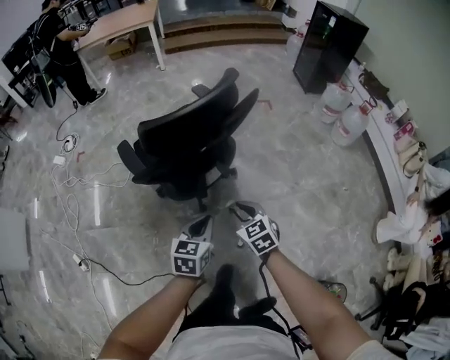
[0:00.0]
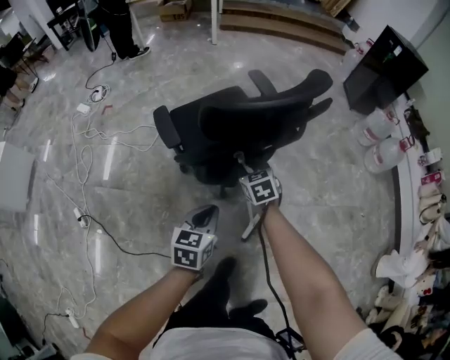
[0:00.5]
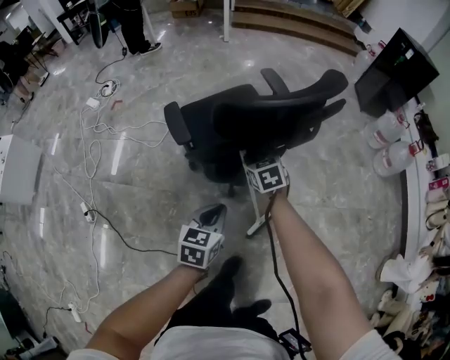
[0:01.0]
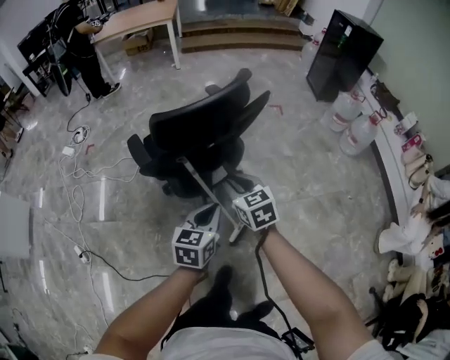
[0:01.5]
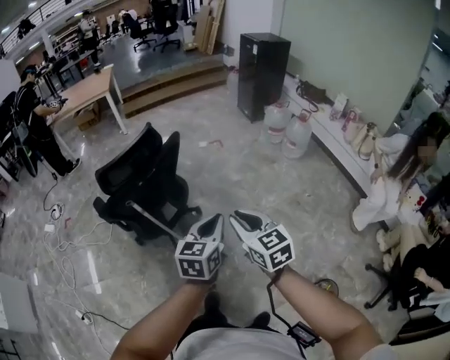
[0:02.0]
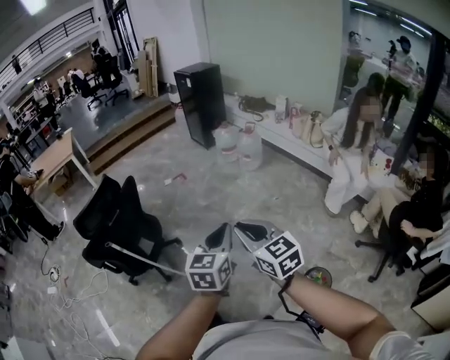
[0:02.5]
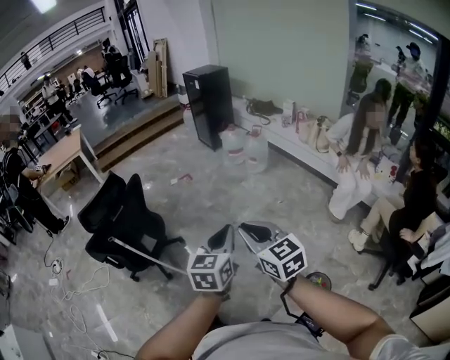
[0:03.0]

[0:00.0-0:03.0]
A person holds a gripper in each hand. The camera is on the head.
0:00.0 to 0:01.5: The right gripper shifts about 10 cm upward and to the left, and moves some 20 cm forward and comes back. Meanwhile the left gripper travels to the left and back again, roughly 15 cm each way.
0:01.5 to 0:03.0: Both grippers are carried about 60 cm. The left gripper turns by some 30 degrees. The right gripper swivels approximately 30 degrees.

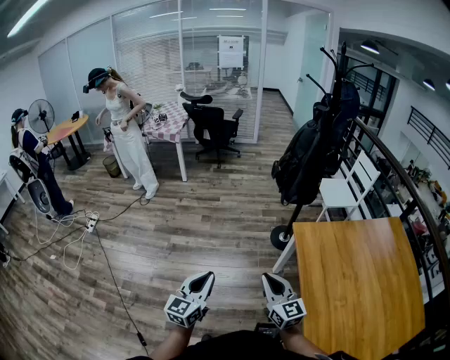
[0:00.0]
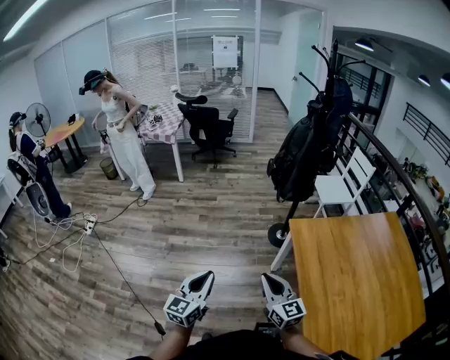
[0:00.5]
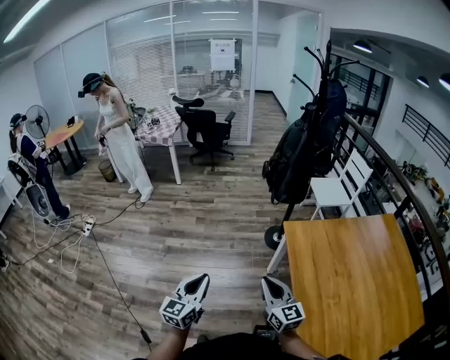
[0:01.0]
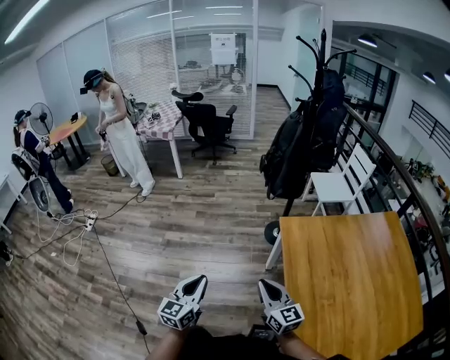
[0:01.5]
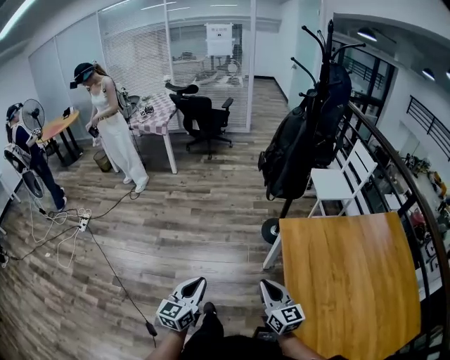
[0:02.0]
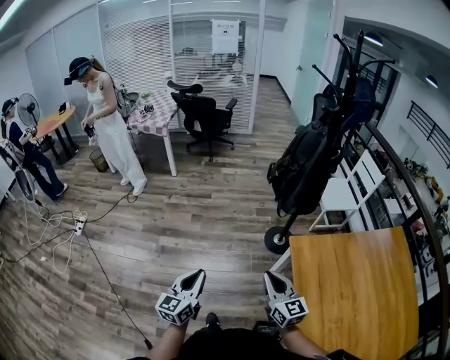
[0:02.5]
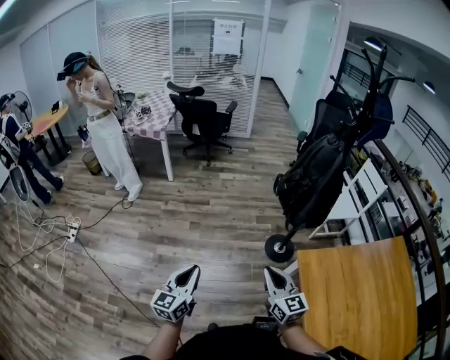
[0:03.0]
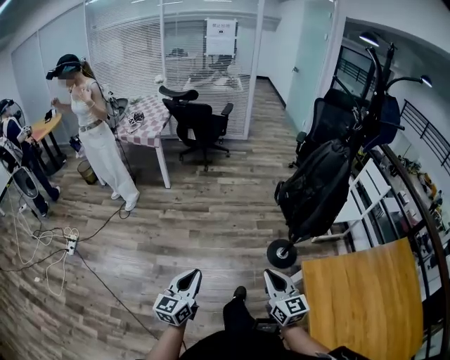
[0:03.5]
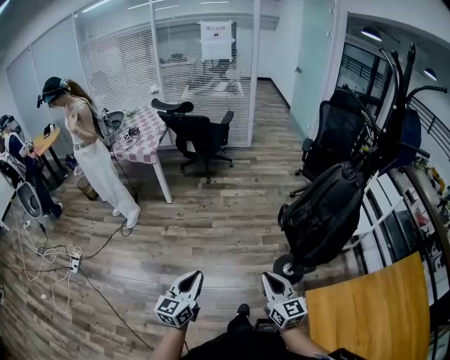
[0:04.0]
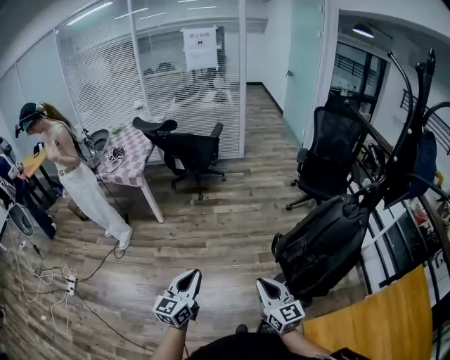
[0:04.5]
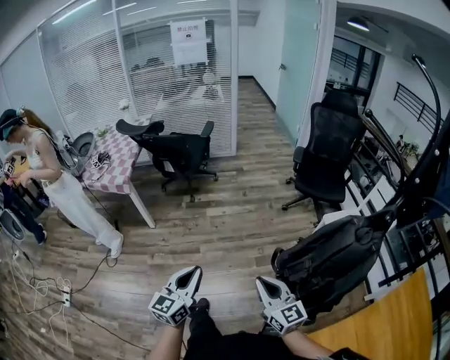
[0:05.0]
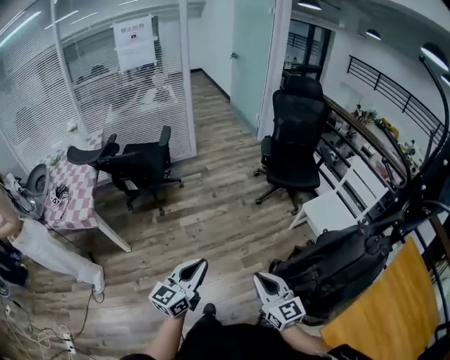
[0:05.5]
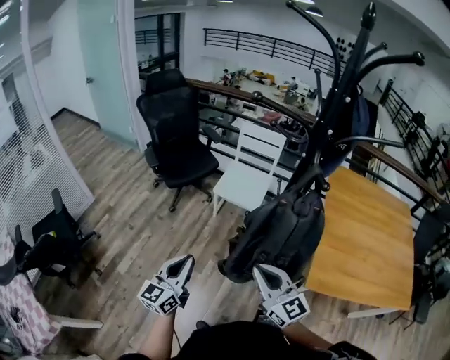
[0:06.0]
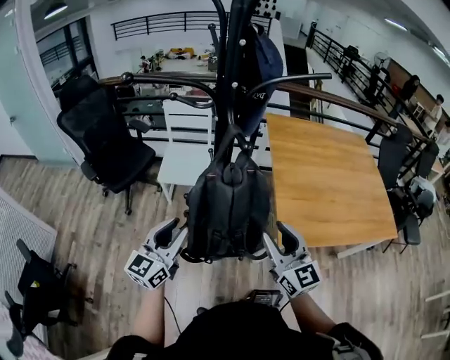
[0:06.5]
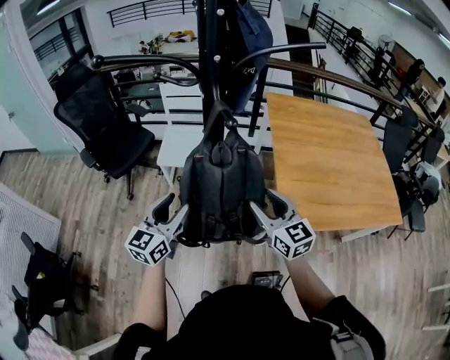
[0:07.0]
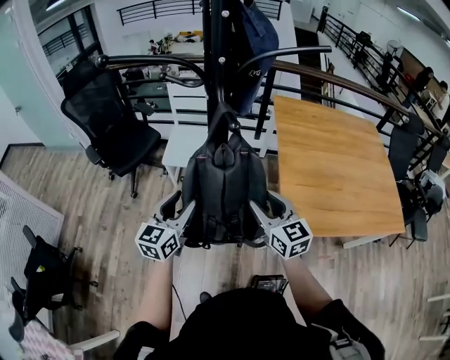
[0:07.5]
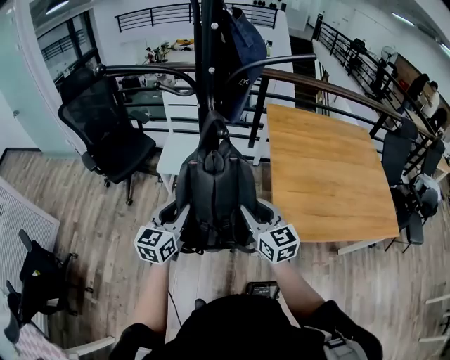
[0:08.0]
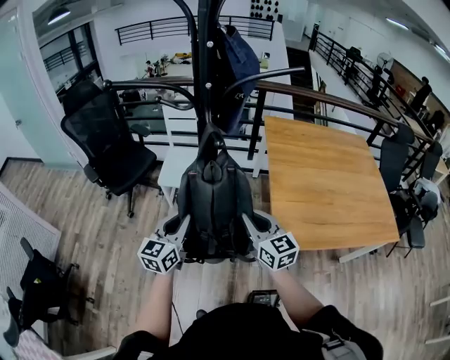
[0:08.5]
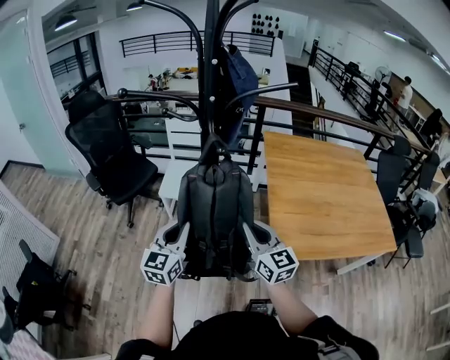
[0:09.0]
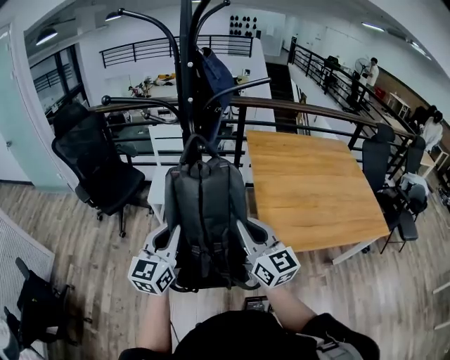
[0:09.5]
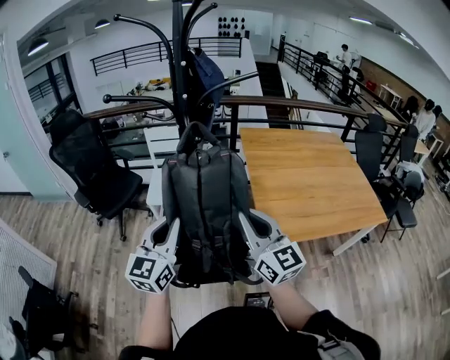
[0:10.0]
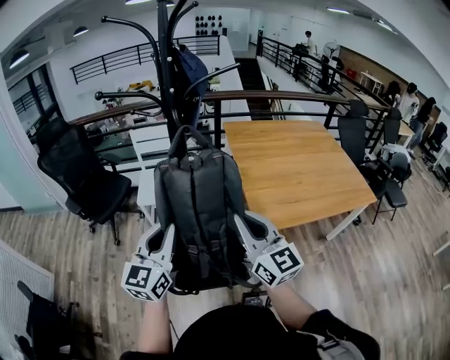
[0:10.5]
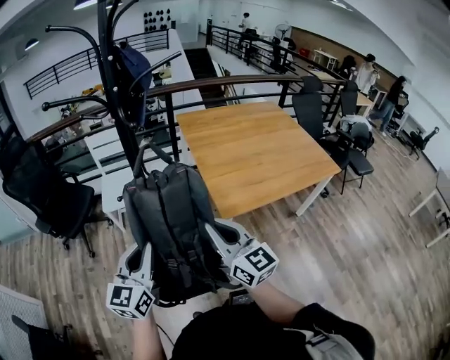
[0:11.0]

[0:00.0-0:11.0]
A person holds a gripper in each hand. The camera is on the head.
0:00.0 to 0:02.0: The right gripper moves to the right and downward, roughly 10 cm, while the left gripper travels downward and to the right by about 10 cm.
0:02.0 to 0:03.5: The left gripper travels forward and to the left by about 30 cm. Meanwhile the right gripper is displaced forward by approximately 25 cm.
0:03.5 to 0:05.5: The two grippers travel together, forward, about 50 cm. The left gripper turns by about 30 degrees.
0:05.5 to 0:07.5: The left gripper shifts by about 35 cm, changes its angle by some 50 degrees, and opens up; the right gripper ends up some 35 cm from where it was, rotates some 60 degrees, and opens up.
0:07.5 to 0:09.0: The left gripper closes its fingers, while the right gripper closes.
0:09.0 to 0:11.0: Both grippers move backward, about 15 cm.

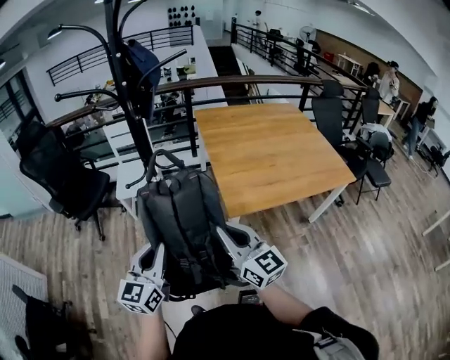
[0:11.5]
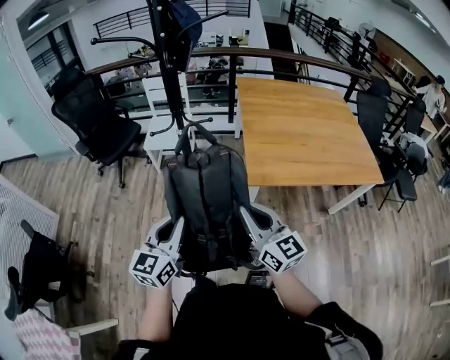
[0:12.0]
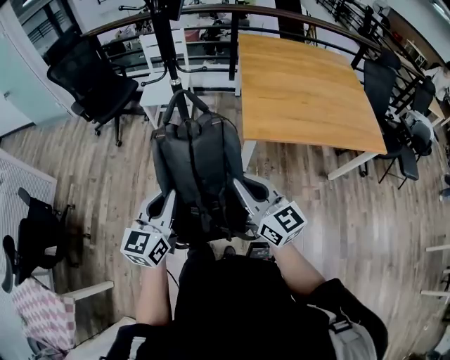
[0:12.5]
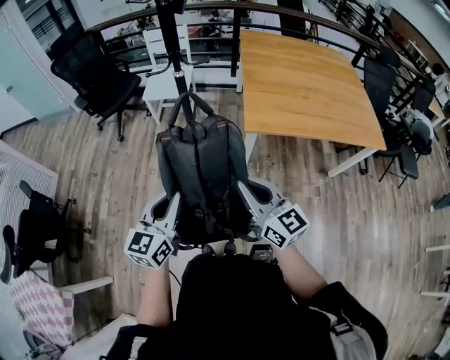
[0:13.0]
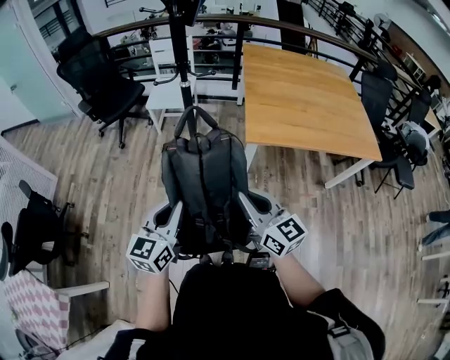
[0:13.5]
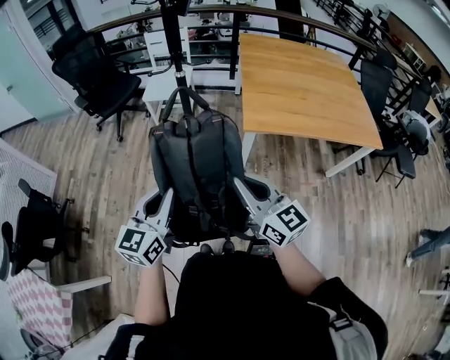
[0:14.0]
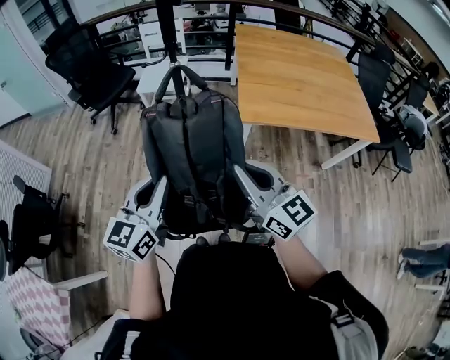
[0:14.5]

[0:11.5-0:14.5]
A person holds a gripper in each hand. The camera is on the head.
0:11.5 to 0:13.0: The right gripper travels backward and downward by some 15 cm, while the left gripper travels backward by roughly 15 cm.
0:13.0 to 0:14.5: The right gripper goes roughly 5 cm upward, while the left gripper changes place by about 5 cm.

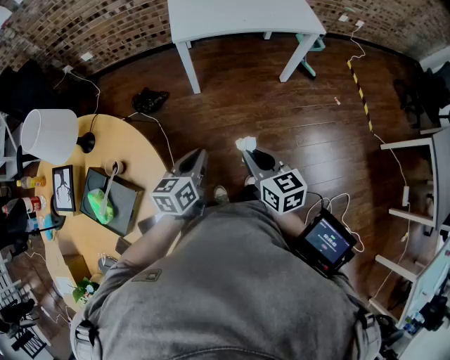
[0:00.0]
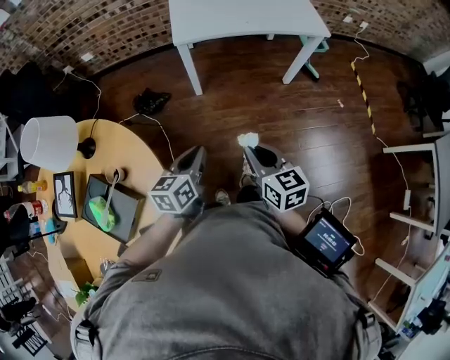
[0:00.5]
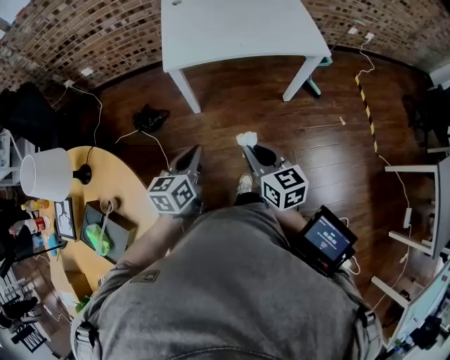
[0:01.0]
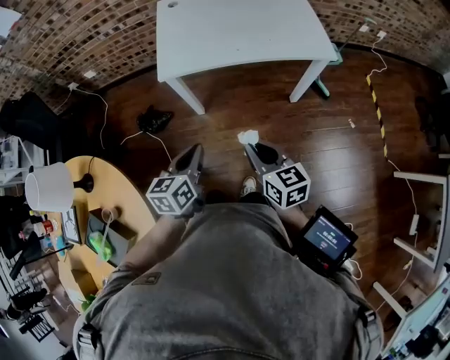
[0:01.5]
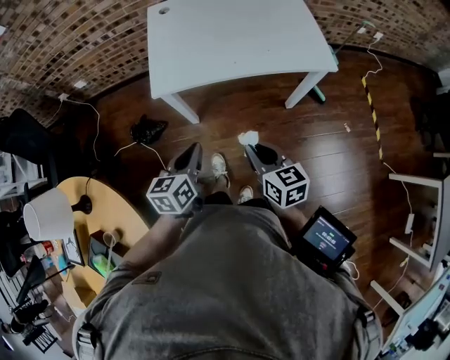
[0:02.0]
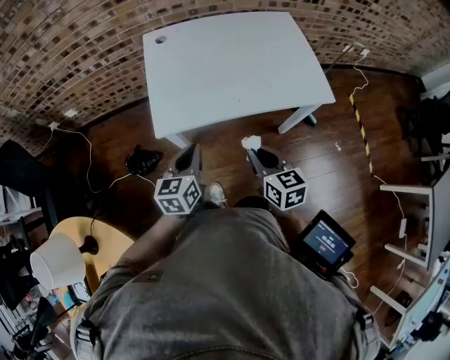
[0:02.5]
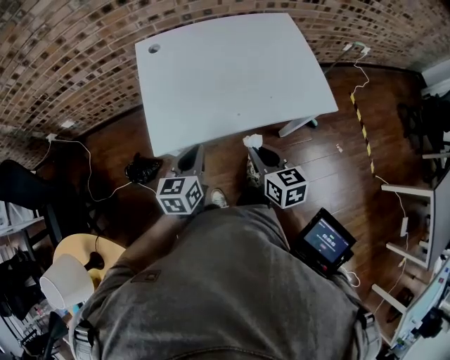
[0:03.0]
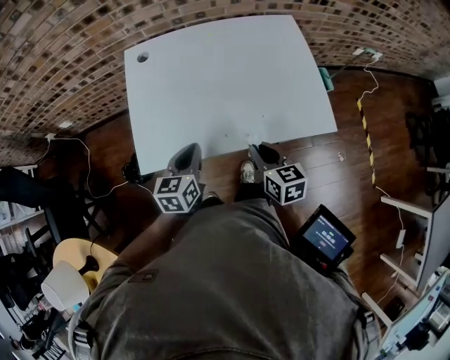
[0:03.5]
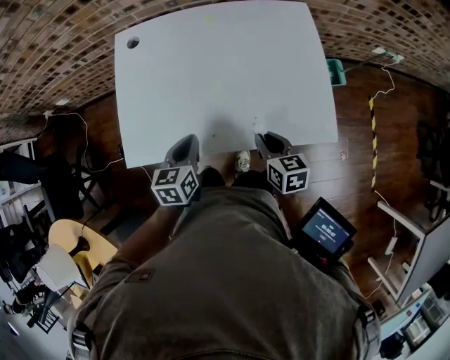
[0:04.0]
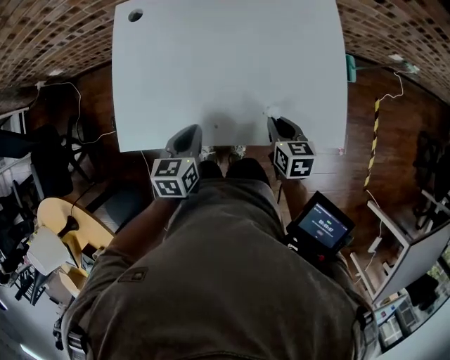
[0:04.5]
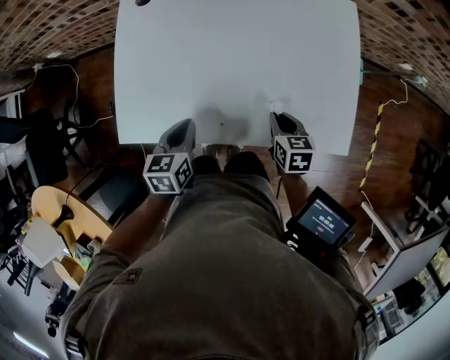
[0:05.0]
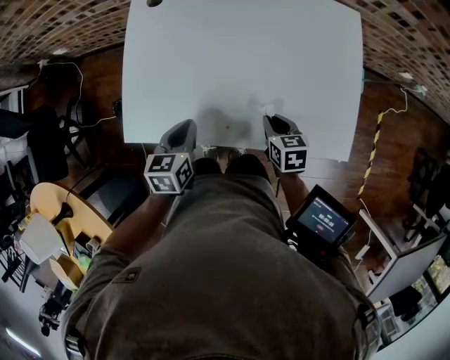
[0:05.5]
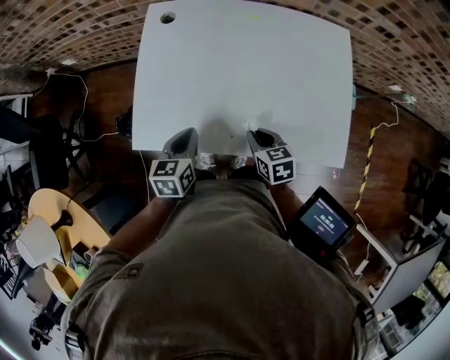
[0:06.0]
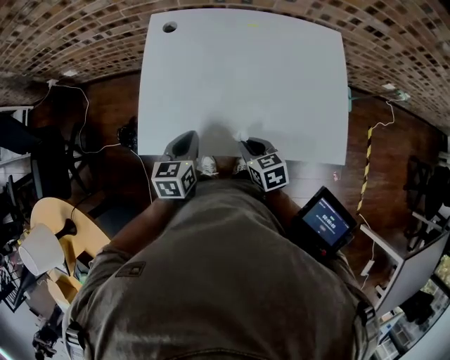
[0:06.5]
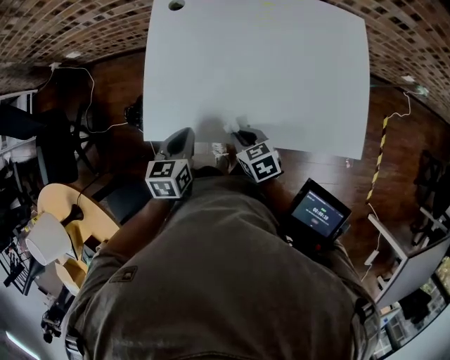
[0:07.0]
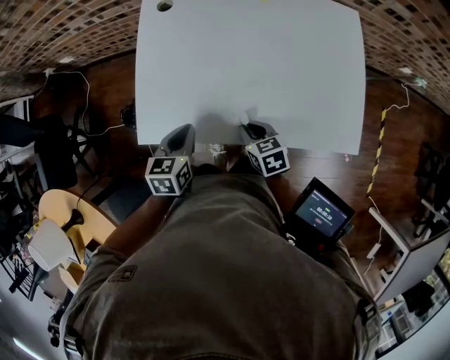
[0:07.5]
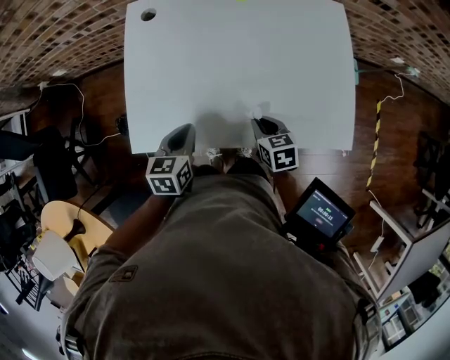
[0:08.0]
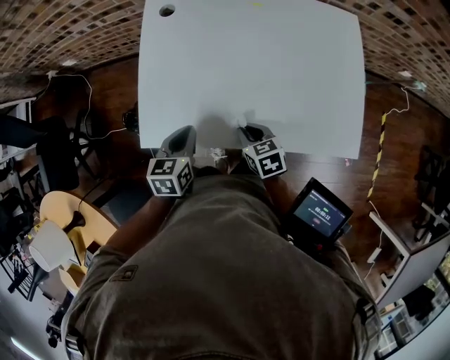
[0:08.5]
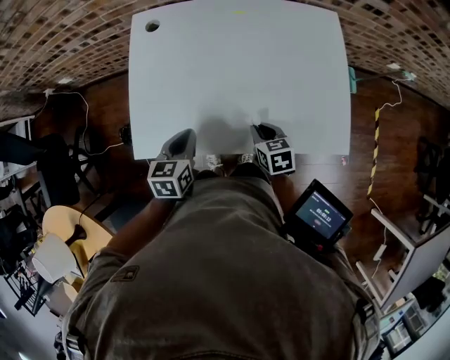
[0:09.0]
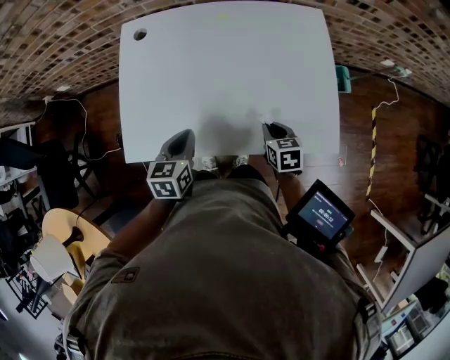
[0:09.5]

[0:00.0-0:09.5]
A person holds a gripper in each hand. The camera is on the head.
0:00.0 to 0:02.0: The right gripper shifts approximately 30 cm forward and to the right. The left gripper goes some 30 cm forward.
0:02.0 to 0:04.0: The right gripper goes roughly 35 cm forward and to the right, while the left gripper goes some 30 cm forward.
0:04.0 to 0:05.5: The left gripper heads to the left, covering about 5 cm. The right gripper travels downward by roughly 5 cm.
0:05.5 to 0:07.5: The right gripper shifts roughly 10 cm to the left.
0:07.5 to 0:09.5: The left gripper is displaced to the right by about 5 cm, while the right gripper moves left and right over approximately 15 cm, changing direction 2 times.
